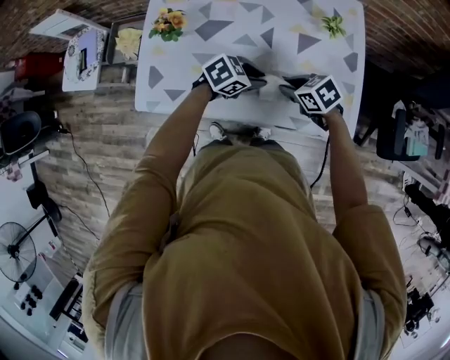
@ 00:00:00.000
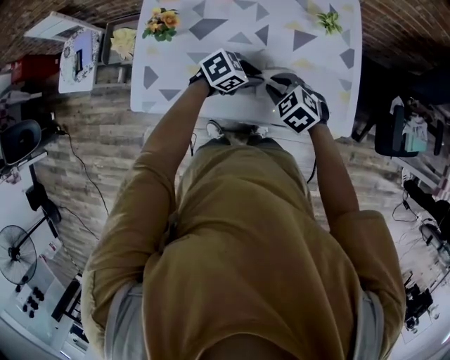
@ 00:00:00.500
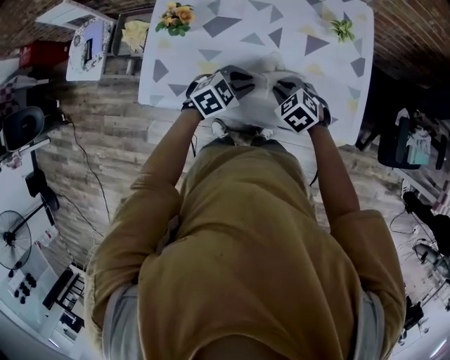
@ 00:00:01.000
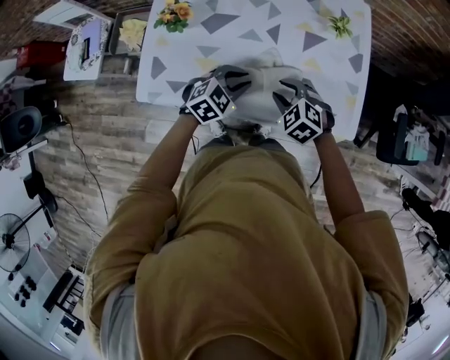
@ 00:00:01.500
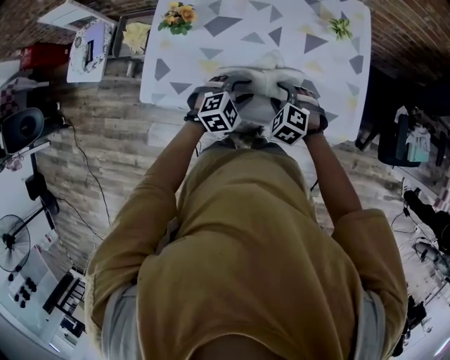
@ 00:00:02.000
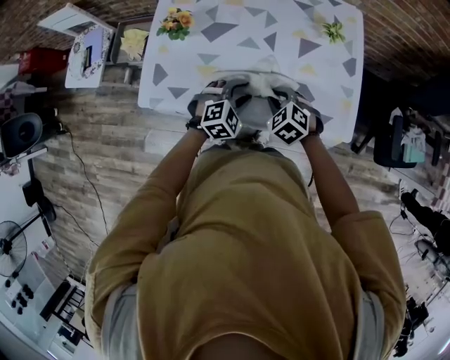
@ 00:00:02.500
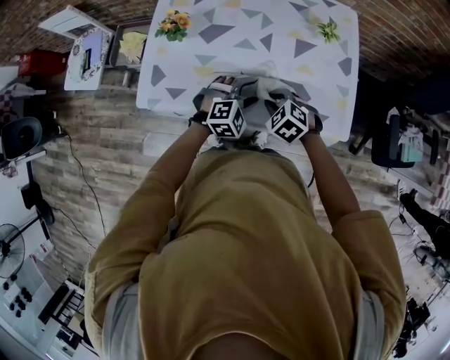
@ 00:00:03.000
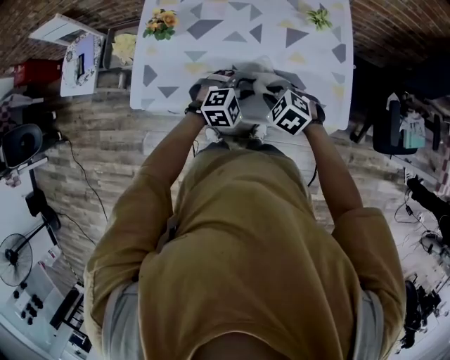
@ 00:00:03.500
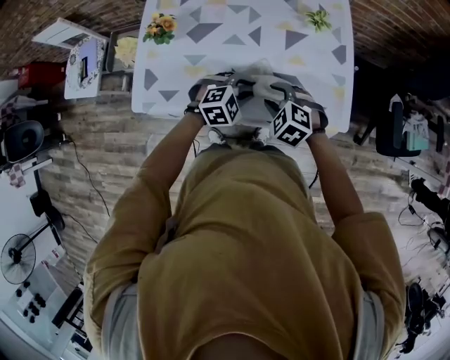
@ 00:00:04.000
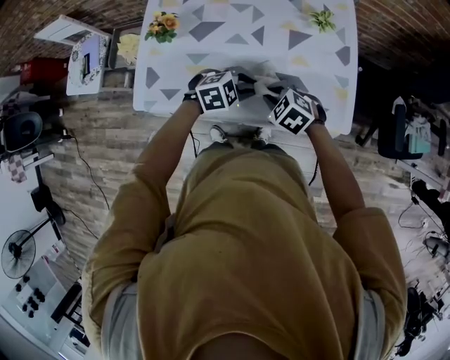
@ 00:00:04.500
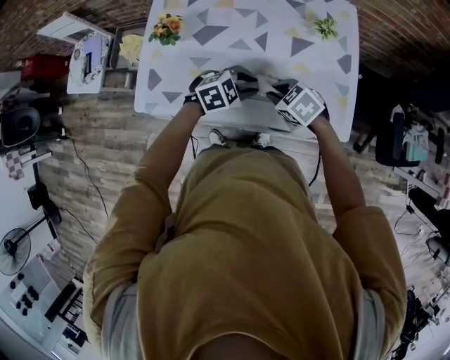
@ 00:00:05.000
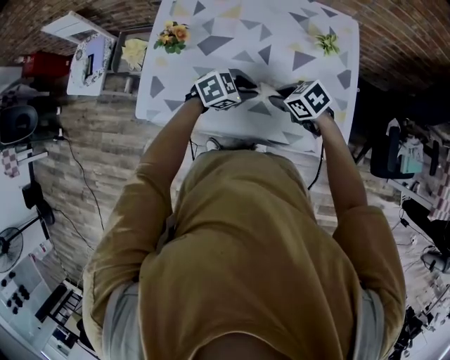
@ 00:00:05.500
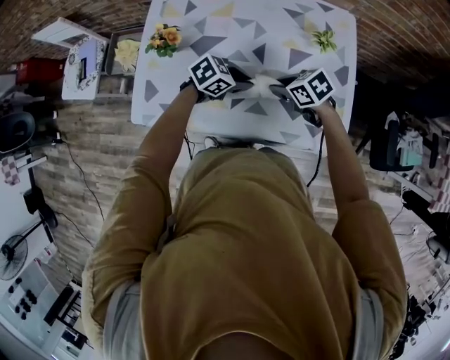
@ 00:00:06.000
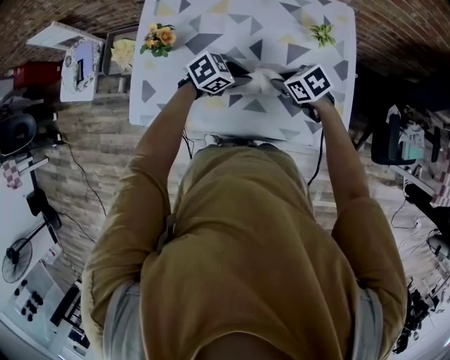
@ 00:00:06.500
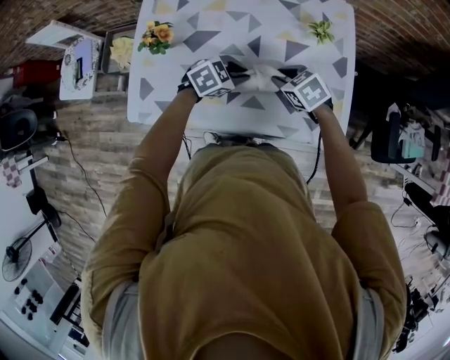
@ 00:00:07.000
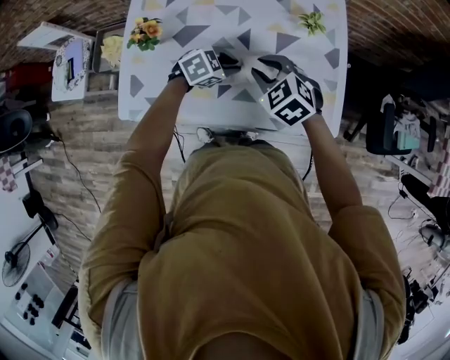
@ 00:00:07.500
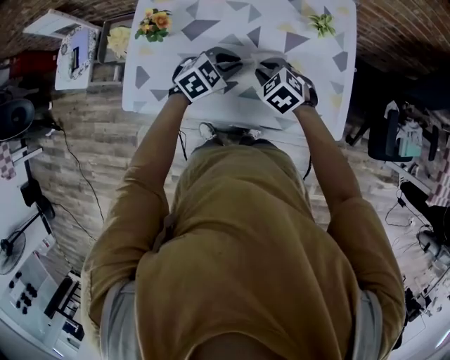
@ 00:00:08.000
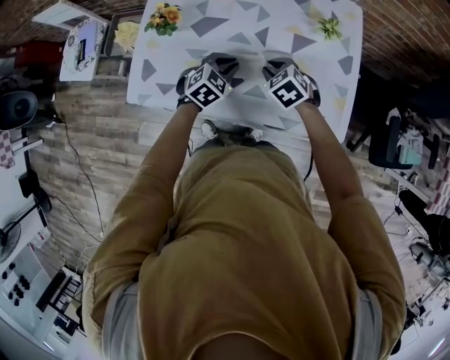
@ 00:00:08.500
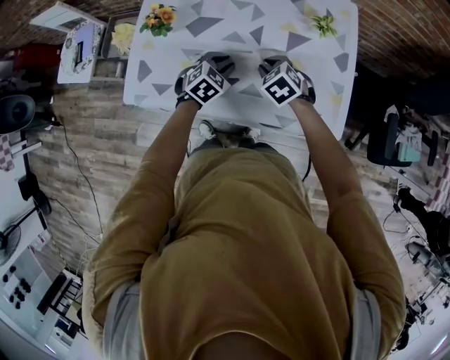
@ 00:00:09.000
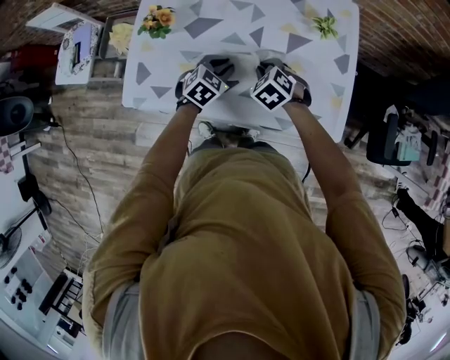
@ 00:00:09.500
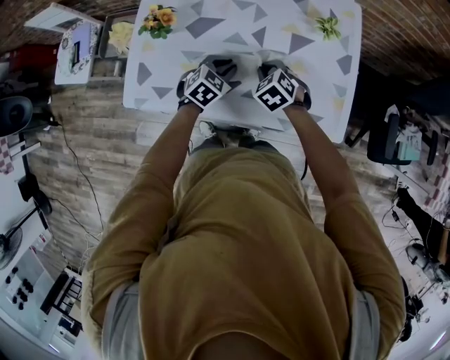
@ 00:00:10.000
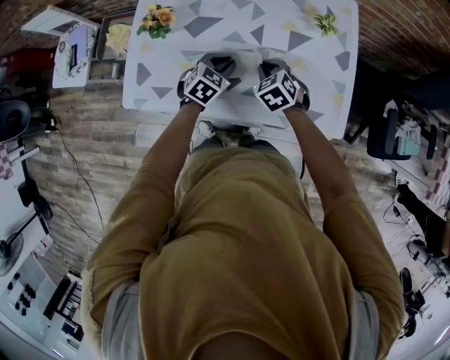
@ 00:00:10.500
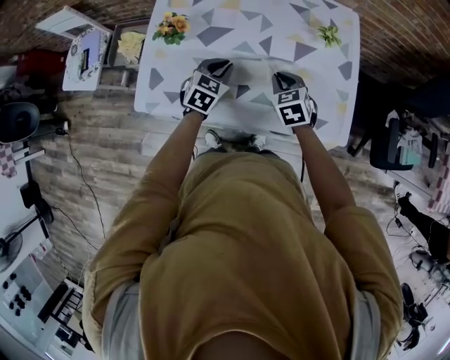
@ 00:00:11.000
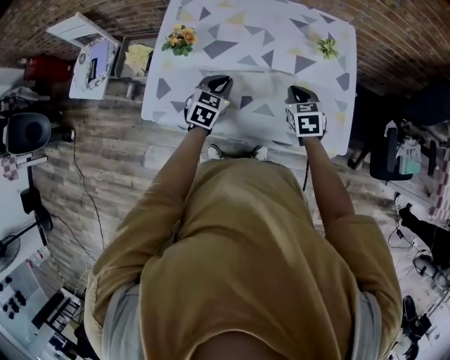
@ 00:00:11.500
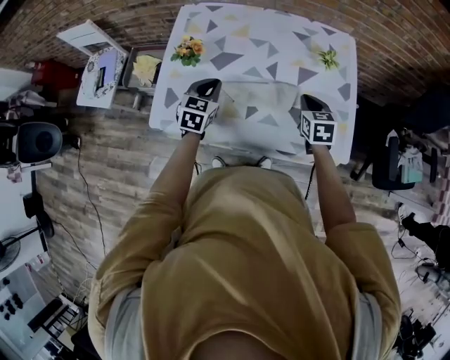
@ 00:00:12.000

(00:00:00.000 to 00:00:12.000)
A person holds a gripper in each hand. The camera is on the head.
00:00:00.000 - 00:00:02.000: The left gripper changes place by about 10 cm, and swivels roughly 30 degrees. Meanwhile the right gripper moves approximately 5 cm, rotates approximately 50 degrees, and opens its fingers.
00:00:02.000 - 00:00:04.000: The left gripper heads to the right, covering approximately 5 cm. The right gripper shifts by approximately 5 cm.
00:00:04.000 - 00:00:06.000: The left gripper moves some 10 cm, and turns by about 40 degrees, while the right gripper ends up some 10 cm from where it was, and changes its angle by approximately 40 degrees.
00:00:06.000 - 00:00:08.000: The right gripper reaches roughly 5 cm upward, then returns, and swivels about 30 degrees; the left gripper turns by roughly 30 degrees.
00:00:08.000 - 00:00:10.000: The left gripper goes about 5 cm downward.
00:00:10.000 - 00:00:12.000: The right gripper is displaced upward and to the right by about 15 cm, and changes its angle by some 40 degrees. The left gripper travels to the left and upward by roughly 15 cm, and changes its angle by approximately 30 degrees.

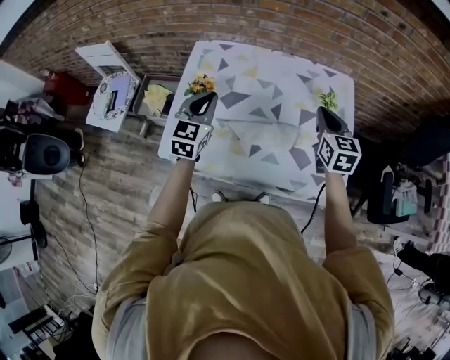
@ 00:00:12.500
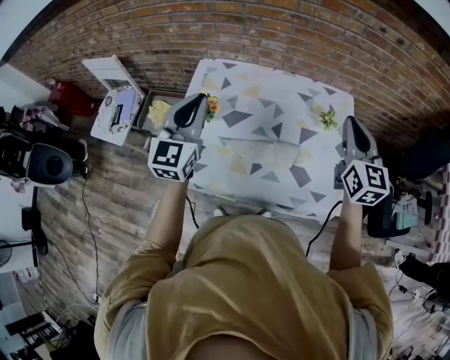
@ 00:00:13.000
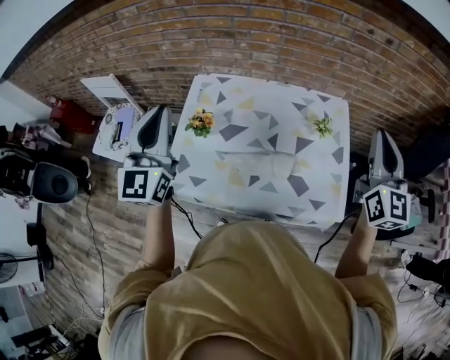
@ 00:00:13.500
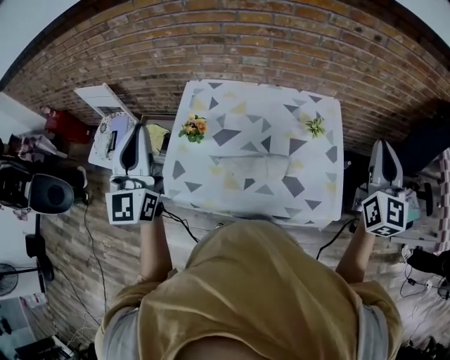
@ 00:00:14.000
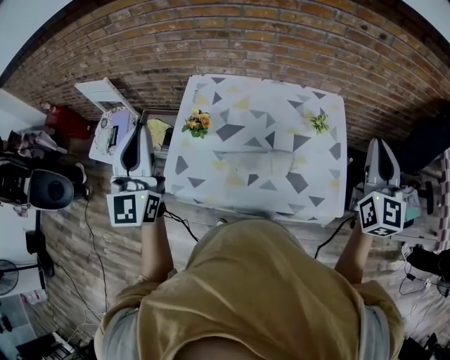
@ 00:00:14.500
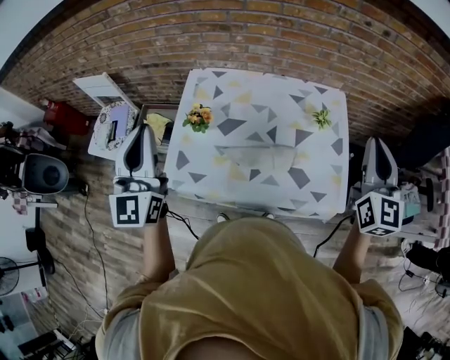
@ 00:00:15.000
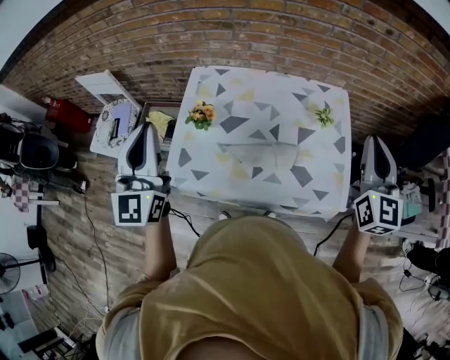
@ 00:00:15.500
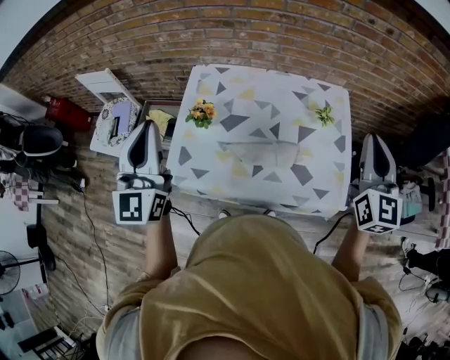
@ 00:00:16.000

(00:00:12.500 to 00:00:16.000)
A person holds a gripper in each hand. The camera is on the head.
00:00:12.500 - 00:00:14.500: The right gripper travels upward and to the right by approximately 25 cm, and changes its angle by approximately 30 degrees; the left gripper moves upward and to the left, about 25 cm, and rotates approximately 30 degrees.
00:00:14.500 - 00:00:16.000: The grippers move only a little.

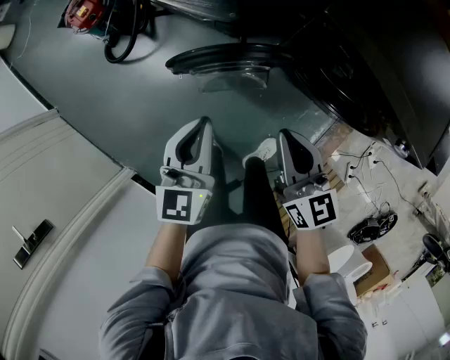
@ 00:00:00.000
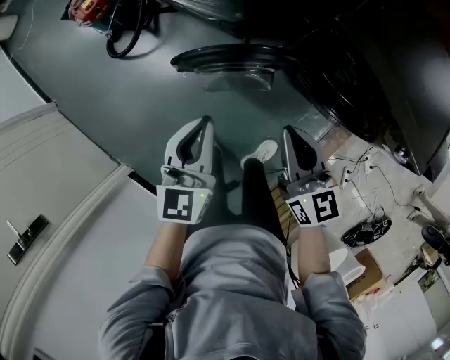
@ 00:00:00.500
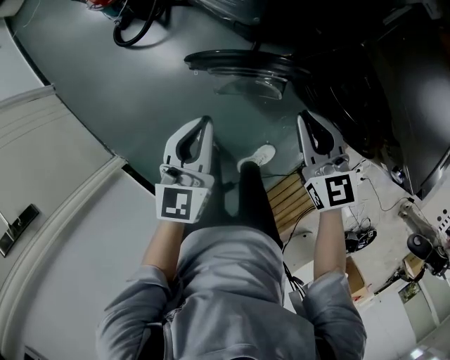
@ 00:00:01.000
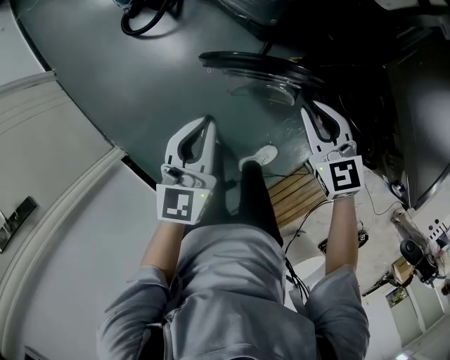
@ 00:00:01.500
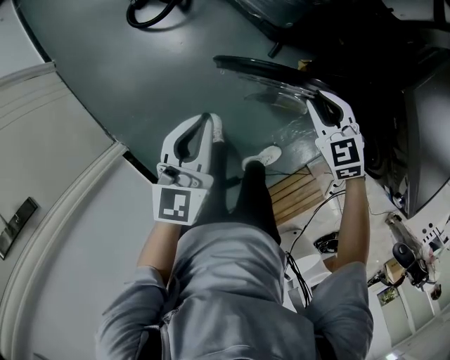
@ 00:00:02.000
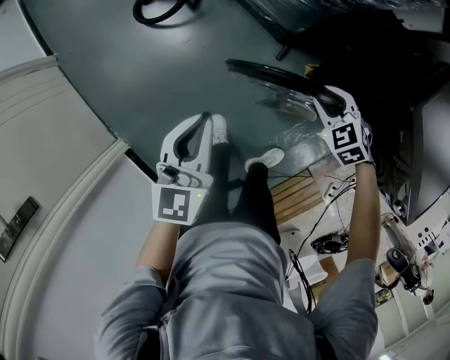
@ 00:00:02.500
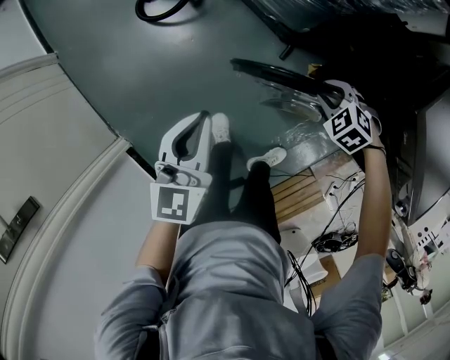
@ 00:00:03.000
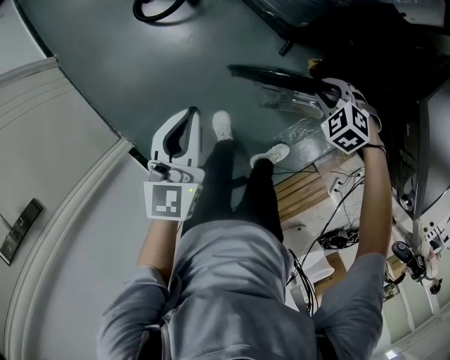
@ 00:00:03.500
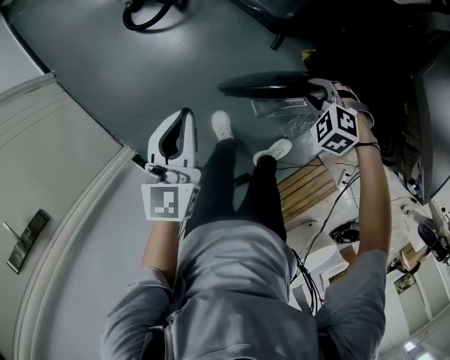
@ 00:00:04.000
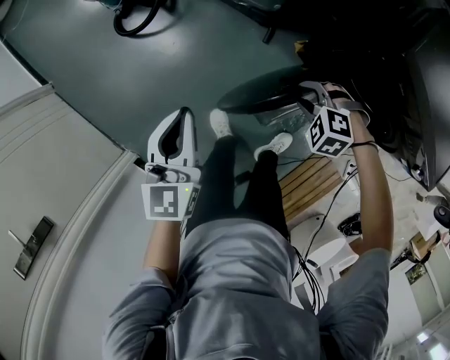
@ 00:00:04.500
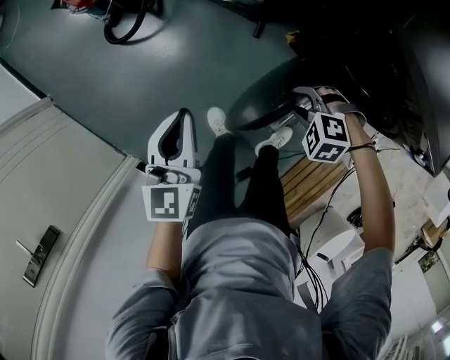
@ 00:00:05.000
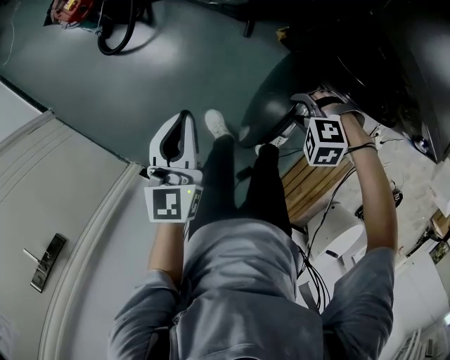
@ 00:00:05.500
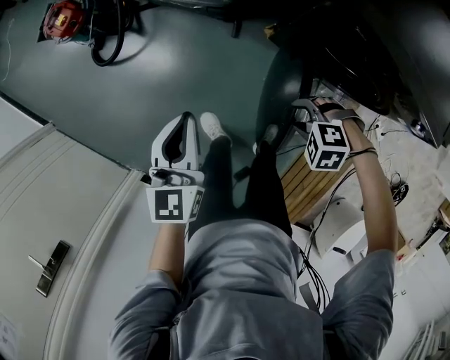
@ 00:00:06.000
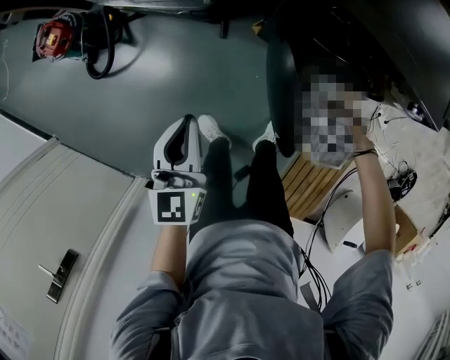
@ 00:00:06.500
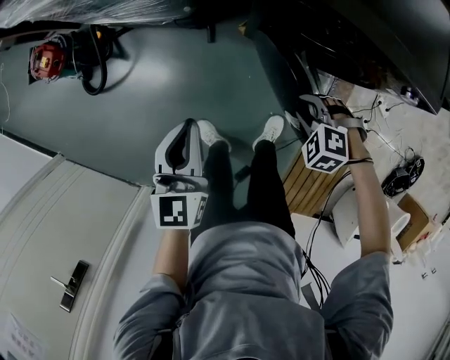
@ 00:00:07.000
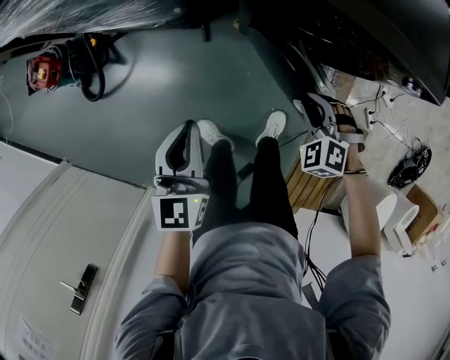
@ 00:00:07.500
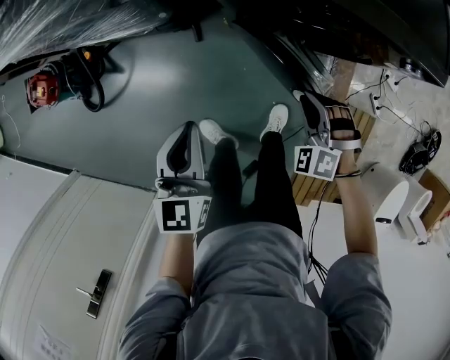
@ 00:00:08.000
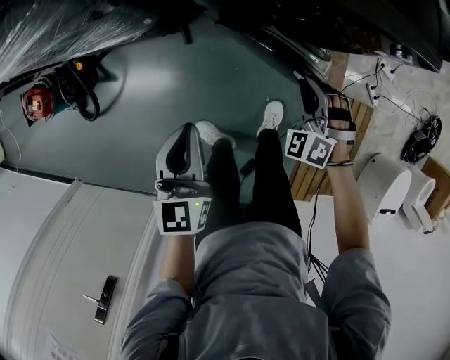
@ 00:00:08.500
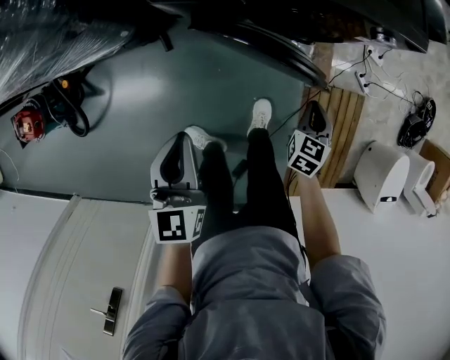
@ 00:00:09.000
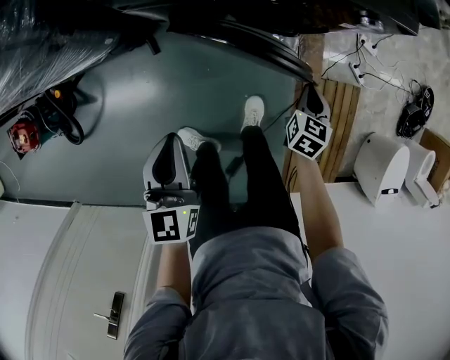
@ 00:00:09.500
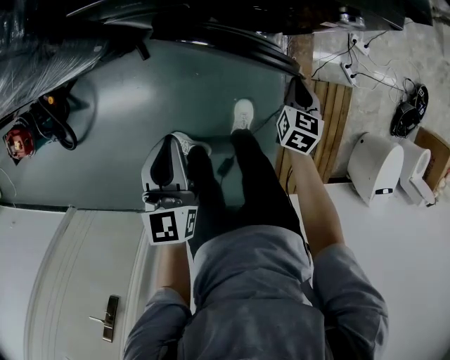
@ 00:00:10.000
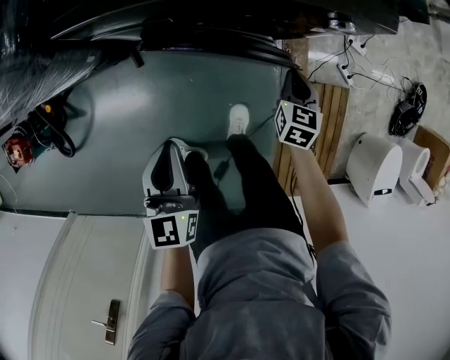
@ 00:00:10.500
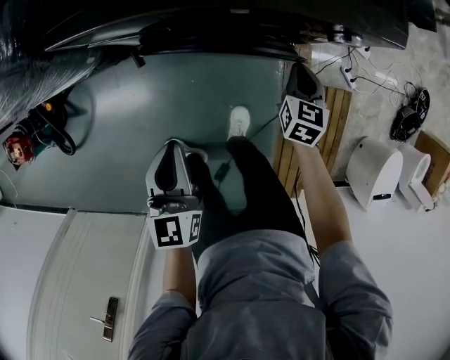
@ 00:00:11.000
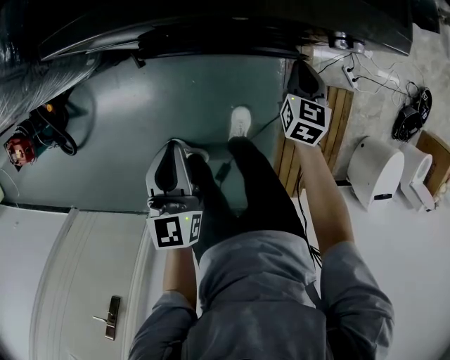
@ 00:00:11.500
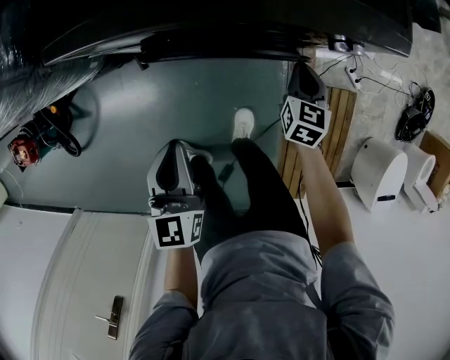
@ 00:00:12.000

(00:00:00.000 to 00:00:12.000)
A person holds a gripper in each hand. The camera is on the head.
00:00:00.000 - 00:00:02.000: The left gripper shifts about 20 cm to the left and forward, while the right gripper heads forward, downward and to the left, covering some 25 cm, and tilts its fingers approximately 30 degrees downward.
00:00:02.000 - 00:00:04.000: The right gripper travels downward by approximately 10 cm, and turns by approximately 40 degrees, while the left gripper shifts by about 5 cm.
00:00:04.000 - 00:00:06.000: The left gripper ends up some 15 cm from where it was, while the right gripper shifts by some 20 cm.
00:00:06.000 - 00:00:08.000: The left gripper moves roughly 15 cm, while the right gripper changes place by some 15 cm, changes its angle by about 50 degrees, and closes up.
00:00:08.000 - 00:00:10.000: The left gripper goes roughly 10 cm to the right. Meanwhile the right gripper is displaced to the right by some 20 cm, and rotates around the line of its fingers by approximately 90 degrees, clockwise from behind.
00:00:10.000 - 00:00:12.000: The left gripper goes some 5 cm forward; the right gripper shifts approximately 10 cm forward.
